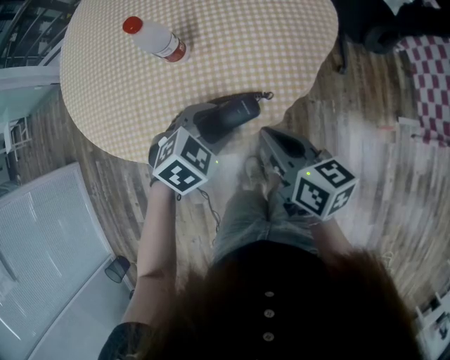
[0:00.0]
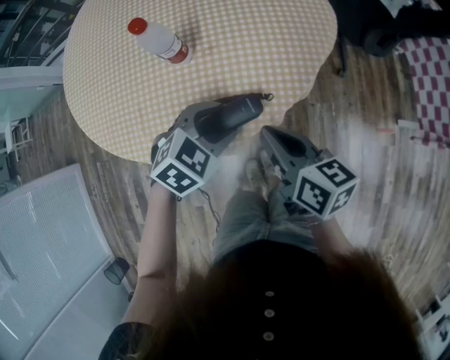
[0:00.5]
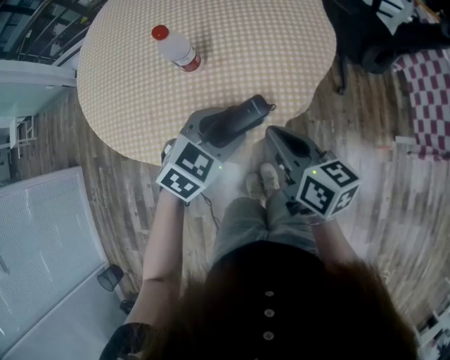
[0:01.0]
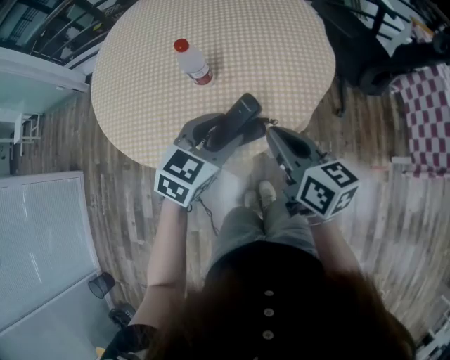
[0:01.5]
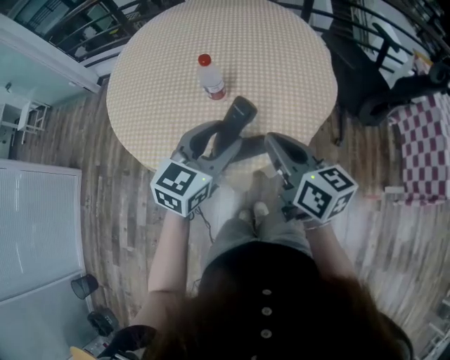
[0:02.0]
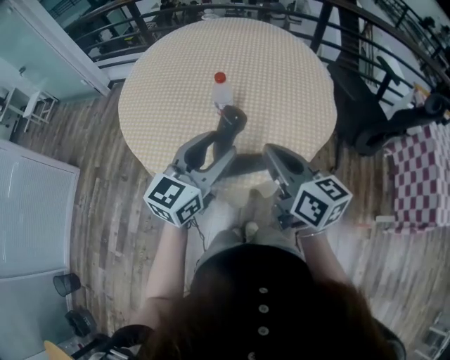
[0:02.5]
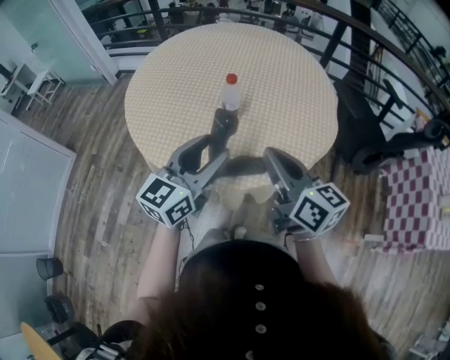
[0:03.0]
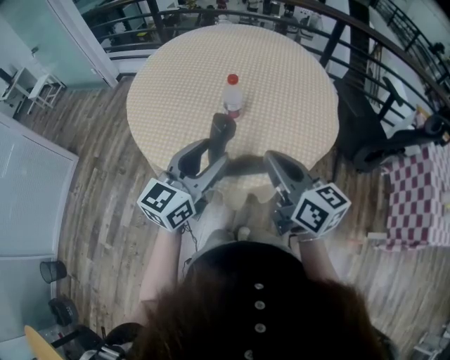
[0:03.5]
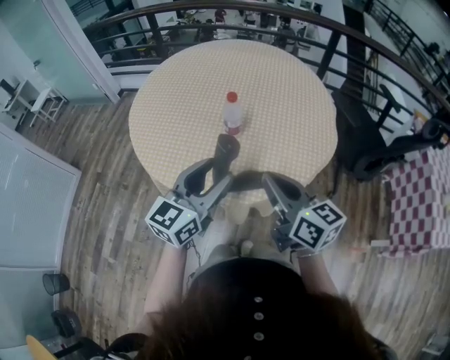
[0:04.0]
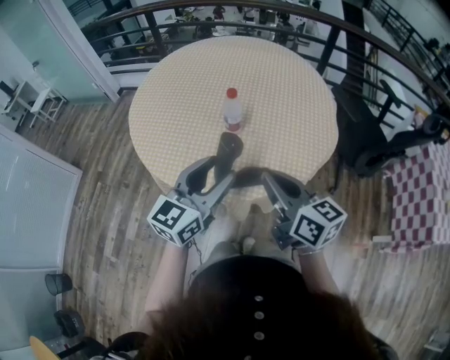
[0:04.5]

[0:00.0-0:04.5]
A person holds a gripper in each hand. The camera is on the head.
0:00.0 to 0:02.0: Both grippers travel together upward, approximately 15 cm. The left gripper tilts its fingers roughly 40 degrees upward.
0:02.0 to 0:04.5: The left gripper heads to the left, covering roughly 5 cm. The right gripper moves about 5 cm.

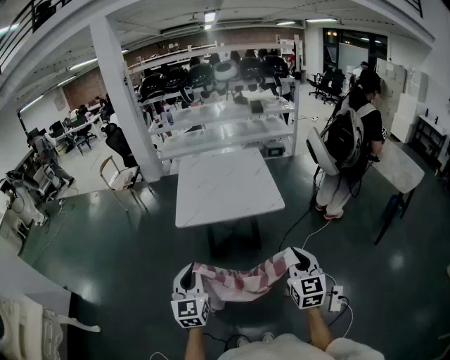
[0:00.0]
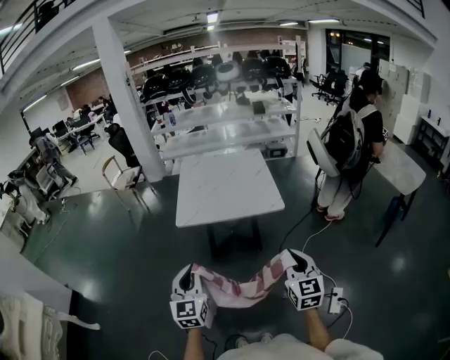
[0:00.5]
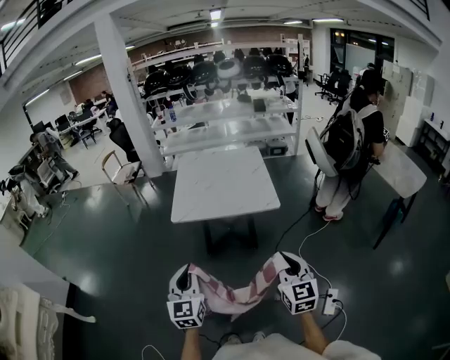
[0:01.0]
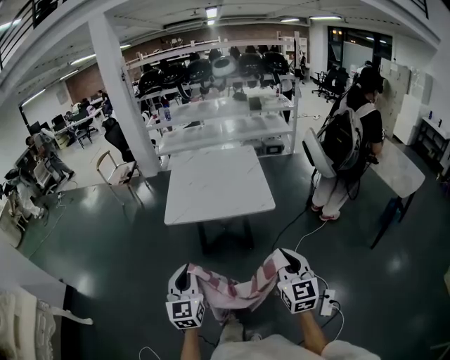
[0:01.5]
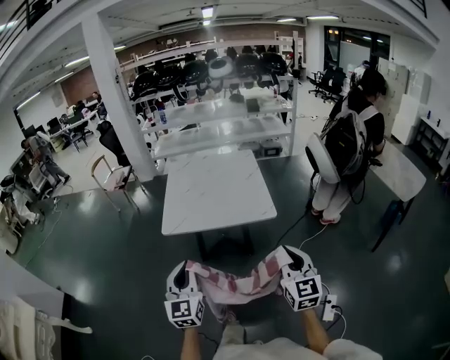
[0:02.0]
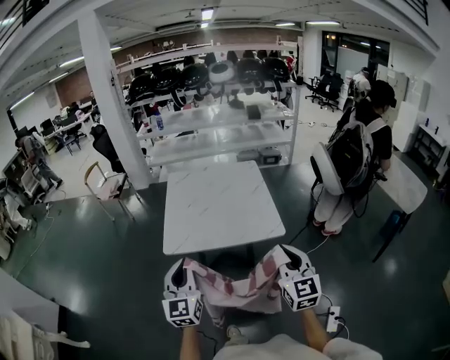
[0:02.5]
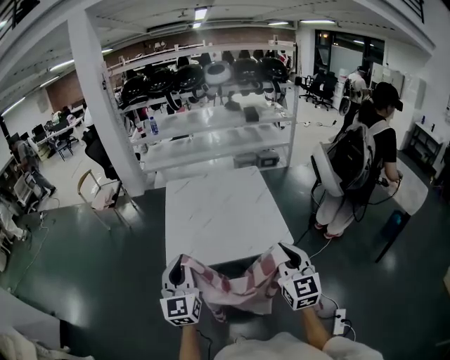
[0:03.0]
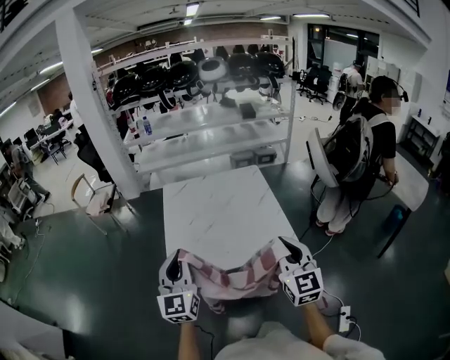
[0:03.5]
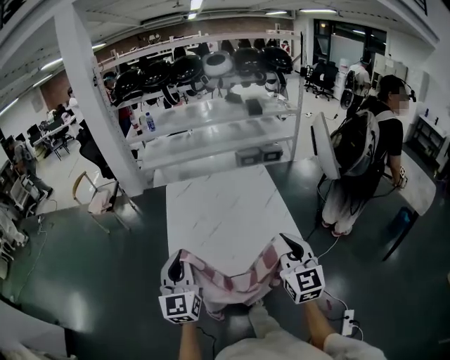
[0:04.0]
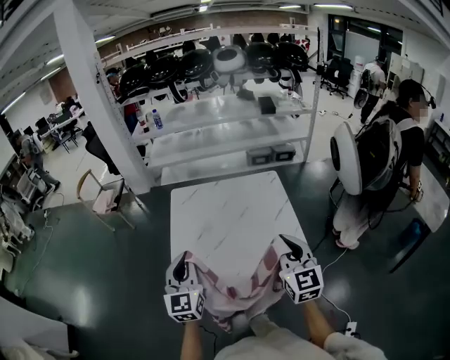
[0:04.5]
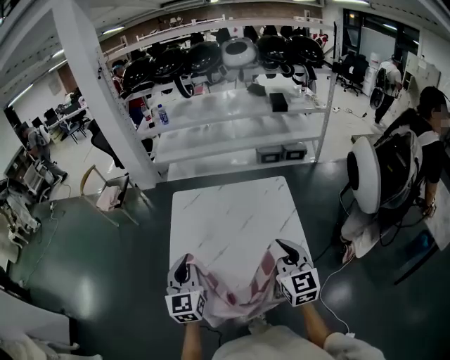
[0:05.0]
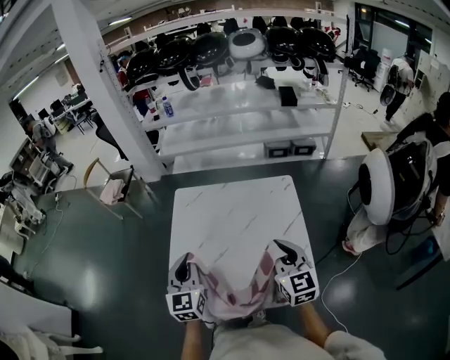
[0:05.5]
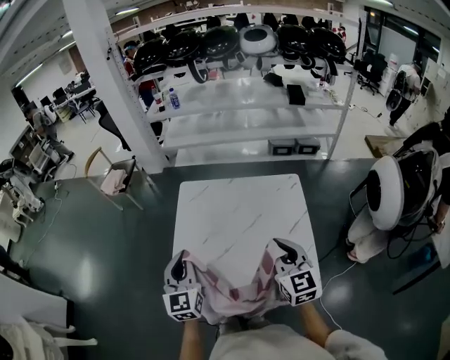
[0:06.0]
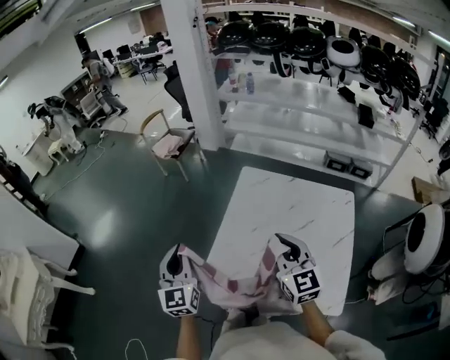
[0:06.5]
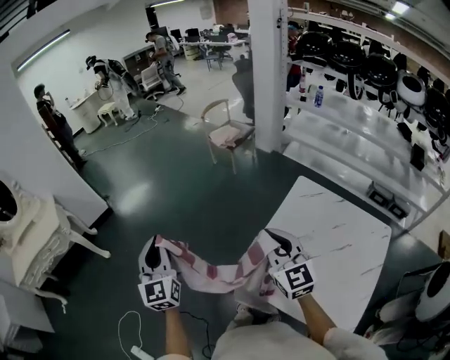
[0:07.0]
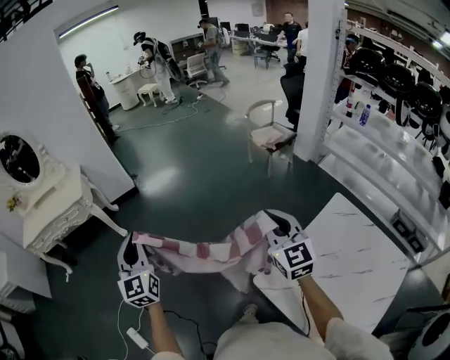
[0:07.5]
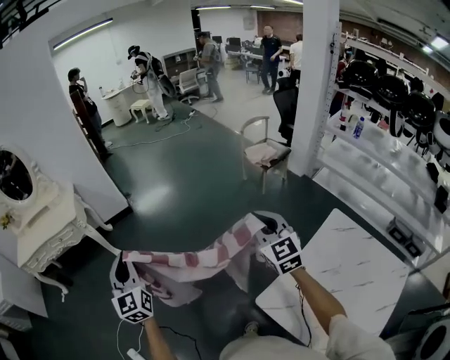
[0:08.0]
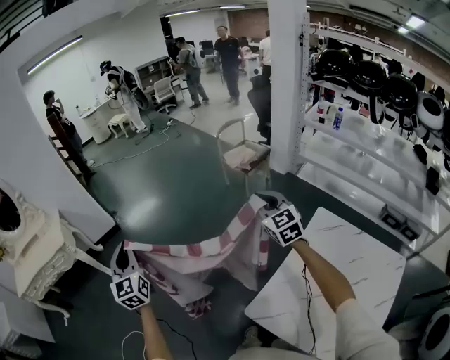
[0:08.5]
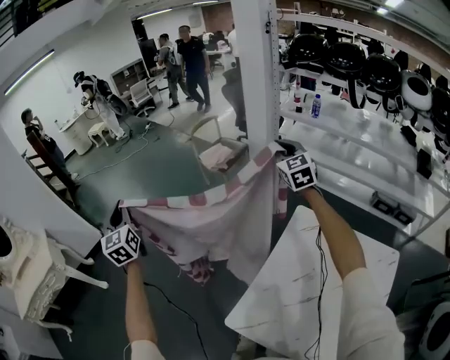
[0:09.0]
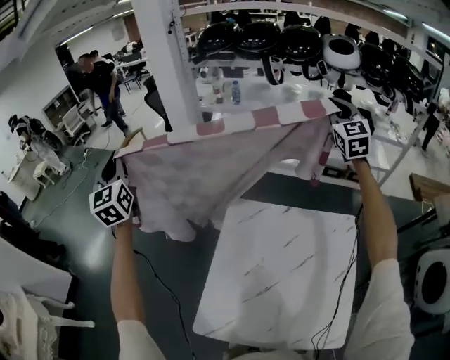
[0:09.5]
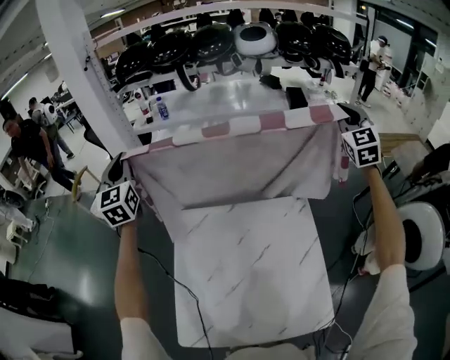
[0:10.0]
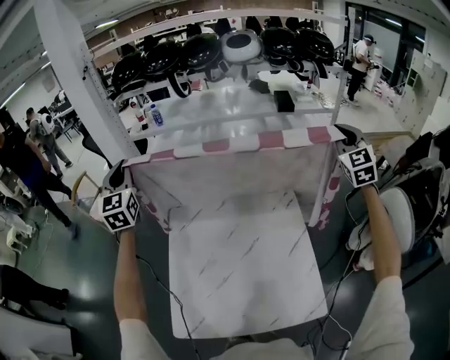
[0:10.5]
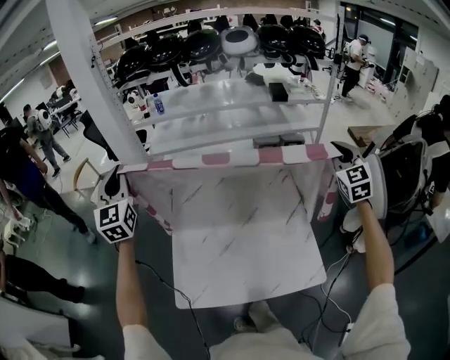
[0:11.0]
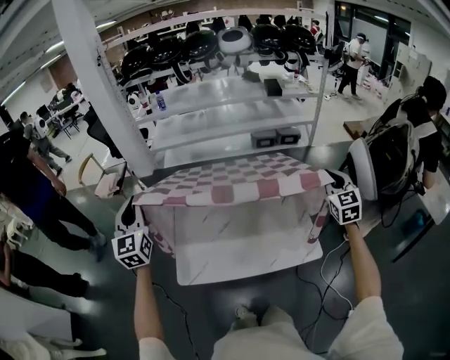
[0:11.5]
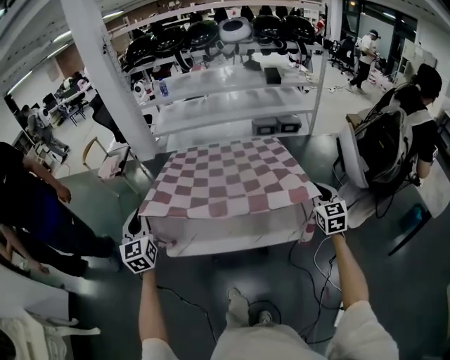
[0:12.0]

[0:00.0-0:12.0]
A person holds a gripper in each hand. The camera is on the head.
0:00.0 to 0:02.0: The right gripper shifts about 10 cm forward; the left gripper is displaced forward and to the right by approximately 10 cm.
0:02.0 to 0:04.0: Both grippers move forward, roughly 35 cm.
0:04.0 to 0:06.0: The two grippers go approximately 25 cm forward.
0:06.0 to 0:08.0: Both grippers are carried about 60 cm. The left gripper turns by approximately 70 degrees, while the right gripper changes its angle by roughly 60 degrees.
0:08.0 to 0:10.0: Both grippers are carried about 90 cm. The right gripper swivels some 80 degrees; the left gripper turns by some 60 degrees.
0:10.0 to 0:12.0: The two grippers travel together, backward, approximately 60 cm. The right gripper travels downward by approximately 25 cm, and swivels about 30 degrees.

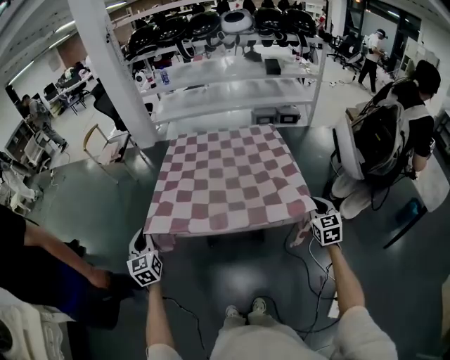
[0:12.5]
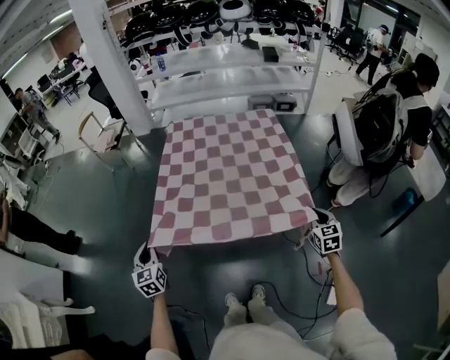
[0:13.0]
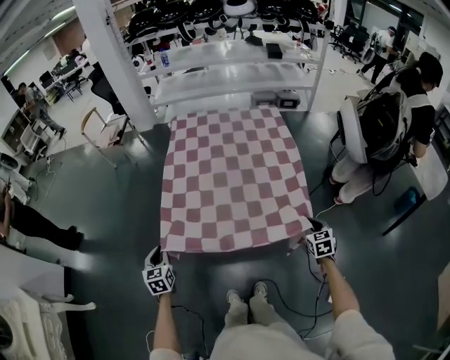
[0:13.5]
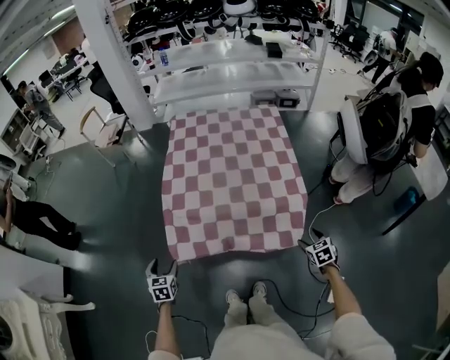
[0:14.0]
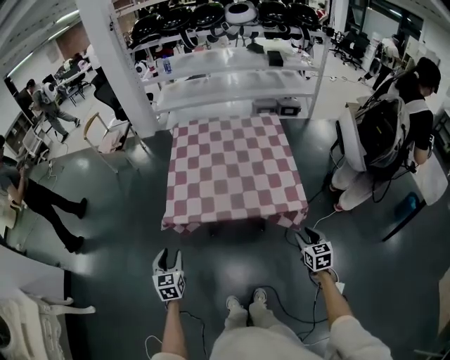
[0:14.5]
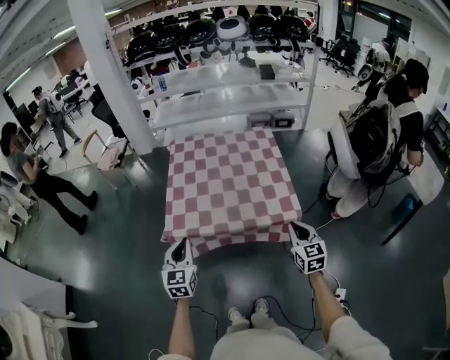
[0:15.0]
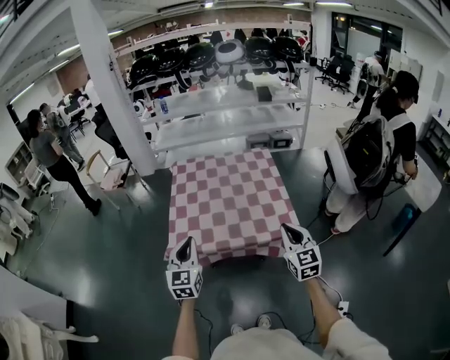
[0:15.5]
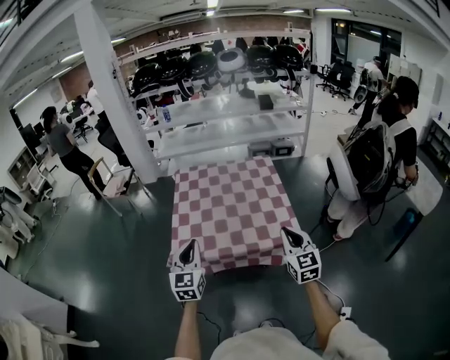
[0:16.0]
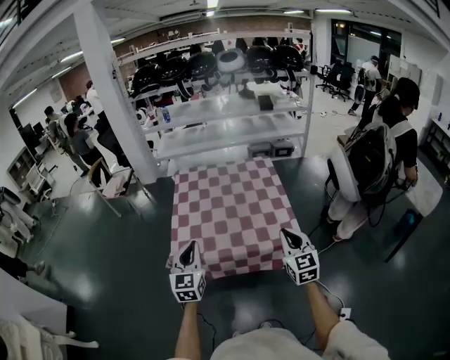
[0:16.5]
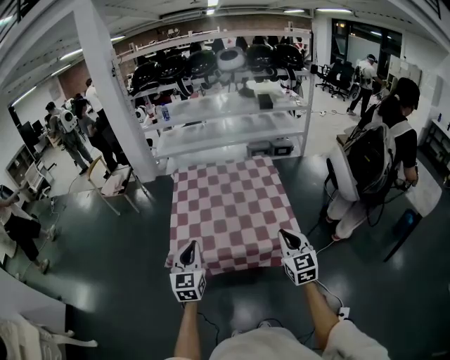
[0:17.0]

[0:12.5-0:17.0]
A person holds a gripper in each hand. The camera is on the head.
0:12.5 to 0:14.5: The right gripper is displaced backward, downward and to the left by about 20 cm, and opens its fingers. The left gripper is displaced downward and backward by roughly 20 cm, and opens.
0:14.5 to 0:17.0: The right gripper heads upward and to the left, covering about 25 cm, rotates about 30 degrees, and closes. Meanwhile the left gripper heads upward, to the right and forward, covering roughly 25 cm, turns by approximately 20 degrees, and closes.

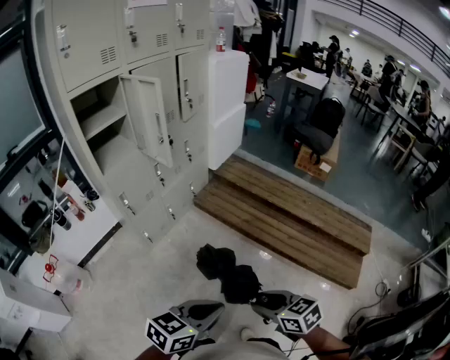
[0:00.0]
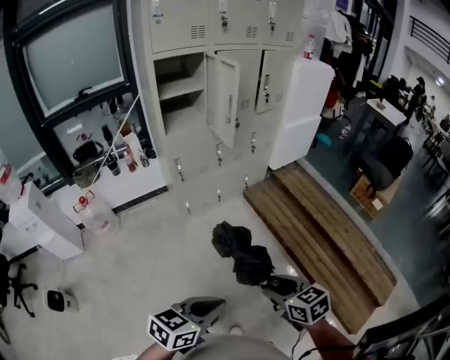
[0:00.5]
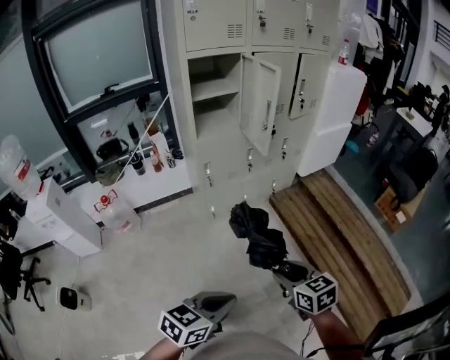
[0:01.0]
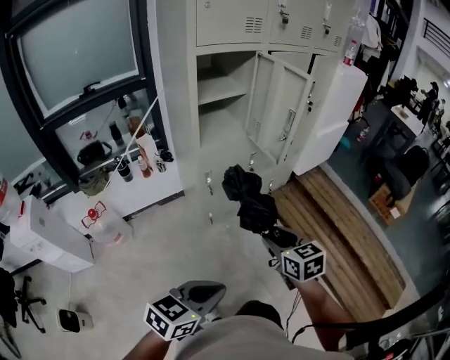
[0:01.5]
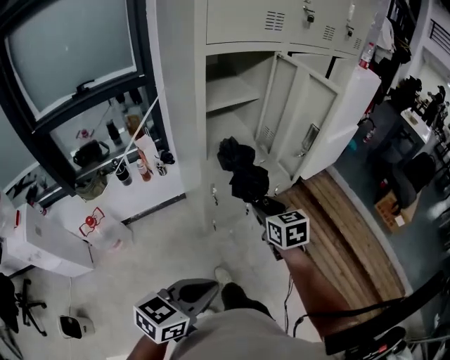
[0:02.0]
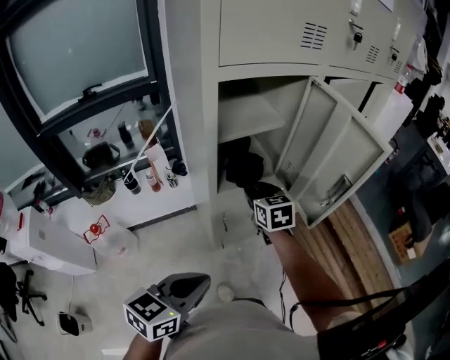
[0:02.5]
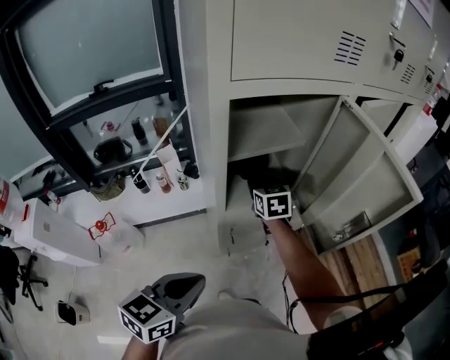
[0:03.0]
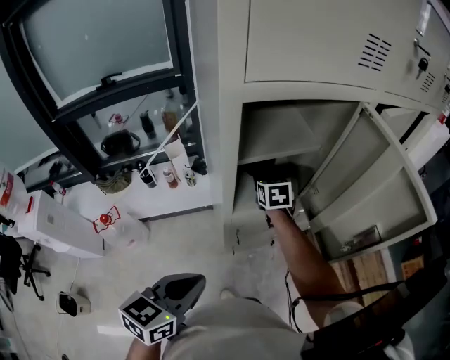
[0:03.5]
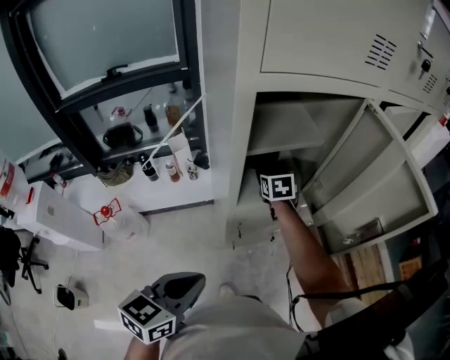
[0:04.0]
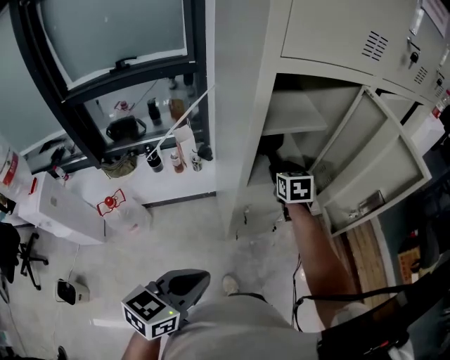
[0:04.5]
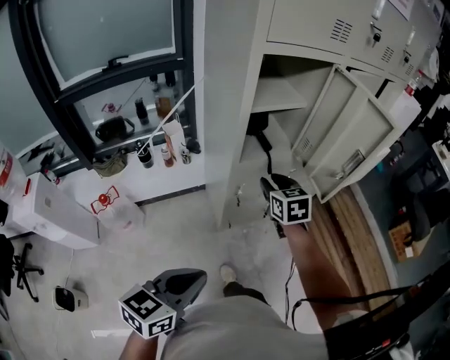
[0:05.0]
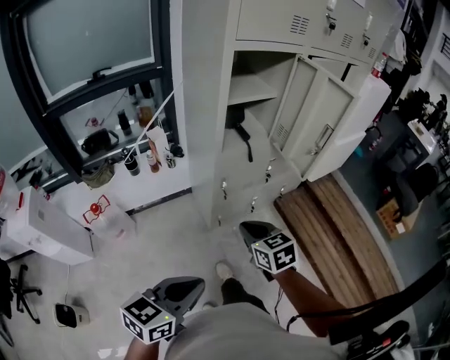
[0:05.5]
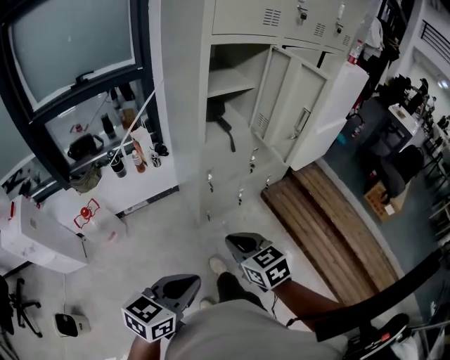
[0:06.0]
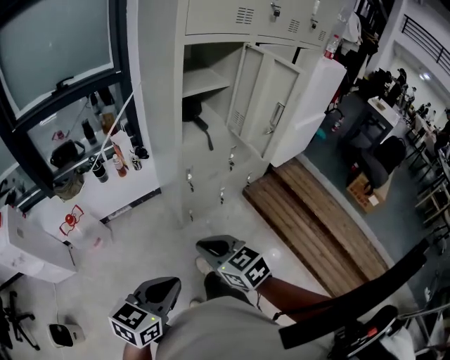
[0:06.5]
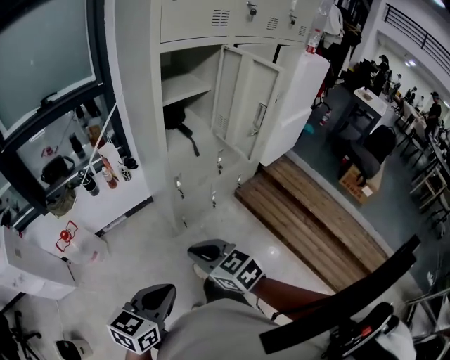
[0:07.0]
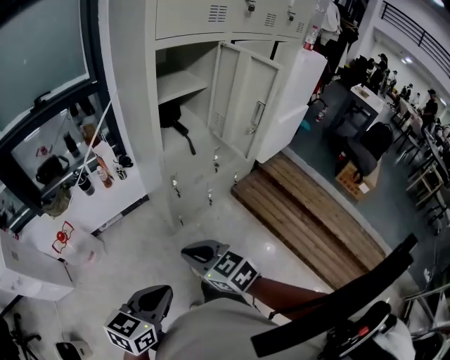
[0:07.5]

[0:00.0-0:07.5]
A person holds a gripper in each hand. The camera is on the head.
0:00.0 to 0:02.0: The left gripper heads to the left and forward, covering roughly 35 cm, and changes its angle by some 20 degrees. The right gripper travels forward and to the left by about 60 cm.
0:02.0 to 0:04.0: The right gripper goes roughly 40 cm forward and to the left, while the left gripper travels forward by approximately 20 cm, and rotates roughly 20 degrees.
0:04.0 to 0:05.5: The right gripper heads backward, covering about 50 cm, and closes. The left gripper goes approximately 25 cm backward.
0:05.5 to 0:07.5: The right gripper moves backward and to the left, about 10 cm.
